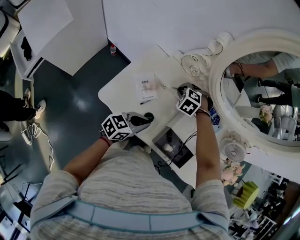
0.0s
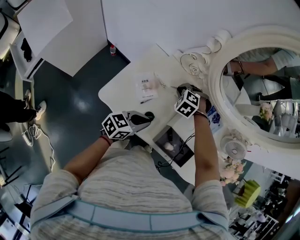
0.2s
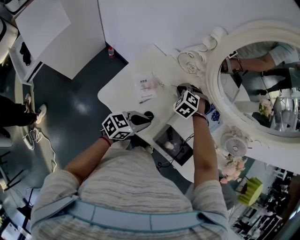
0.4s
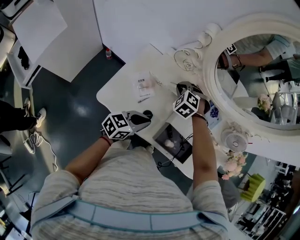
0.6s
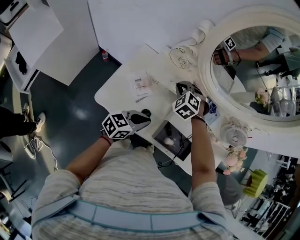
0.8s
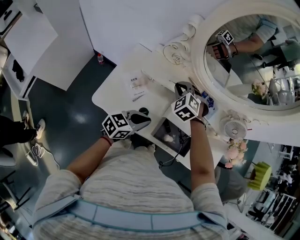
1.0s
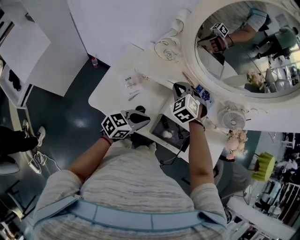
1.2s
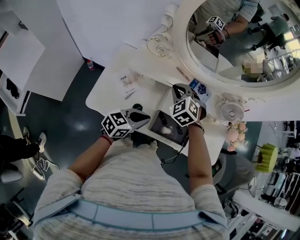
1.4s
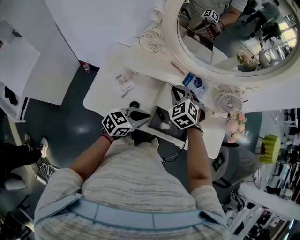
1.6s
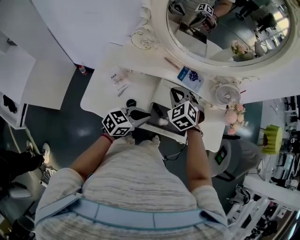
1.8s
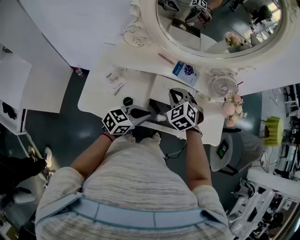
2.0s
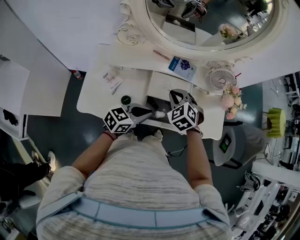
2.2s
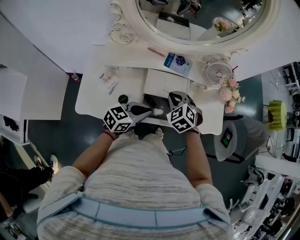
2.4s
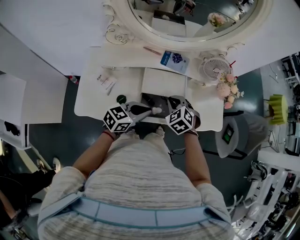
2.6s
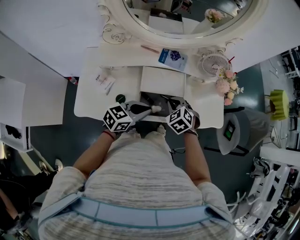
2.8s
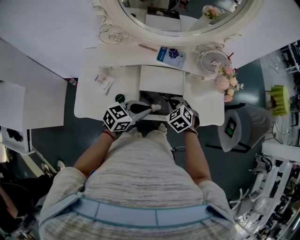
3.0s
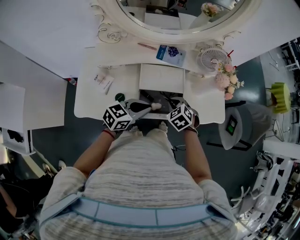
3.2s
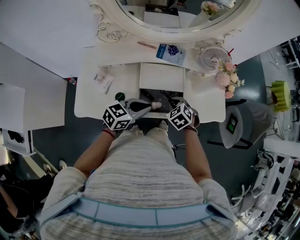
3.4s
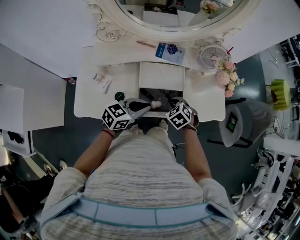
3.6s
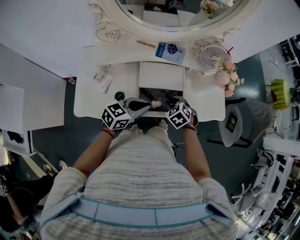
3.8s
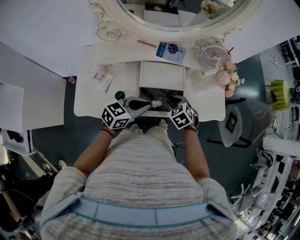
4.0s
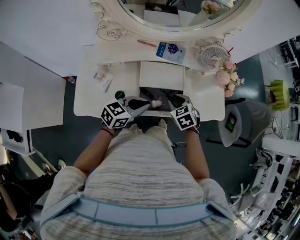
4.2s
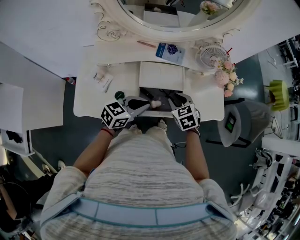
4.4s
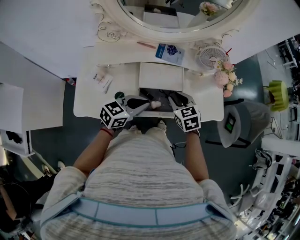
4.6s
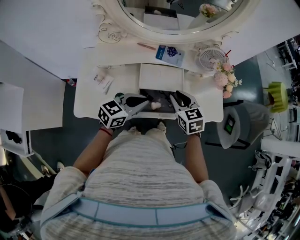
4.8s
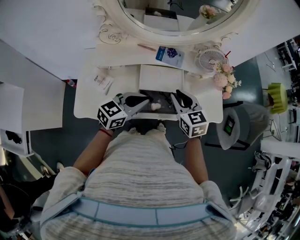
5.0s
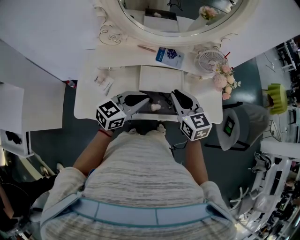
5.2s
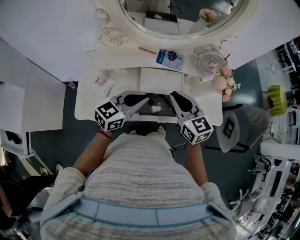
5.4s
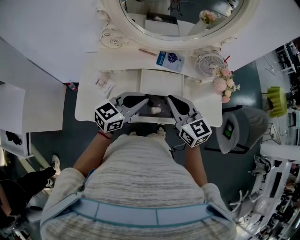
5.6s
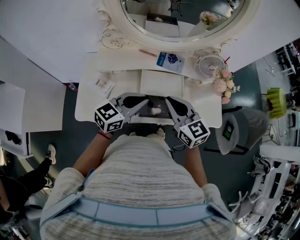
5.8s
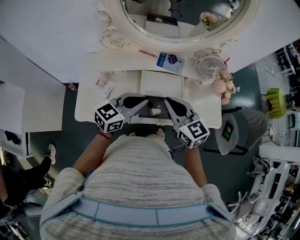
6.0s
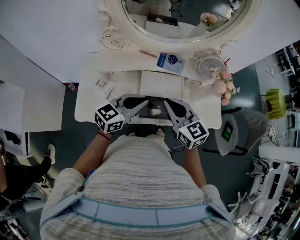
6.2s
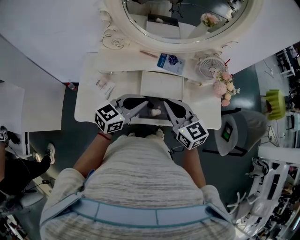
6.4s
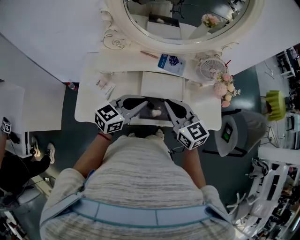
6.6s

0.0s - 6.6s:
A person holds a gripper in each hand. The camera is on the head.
0.0s - 1.6s: The right gripper travels to the right, upward and backward by some 20 cm, and changes its angle by about 40 degrees, while the left gripper heads to the right, covering approximately 10 cm.
1.6s - 3.2s: The left gripper heads to the right, covering some 10 cm; the right gripper moves to the right and downward, some 20 cm, and swivels approximately 30 degrees.
3.2s - 5.0s: The left gripper is displaced upward by about 5 cm, while the right gripper travels upward by about 15 cm, and rotates approximately 40 degrees.
5.0s - 6.6s: The right gripper moves upward, about 5 cm.

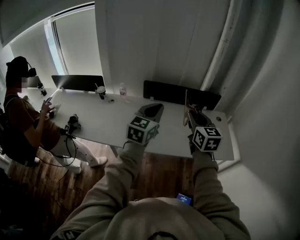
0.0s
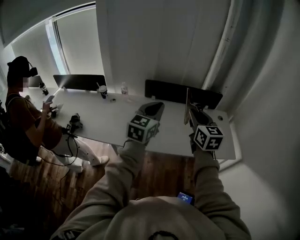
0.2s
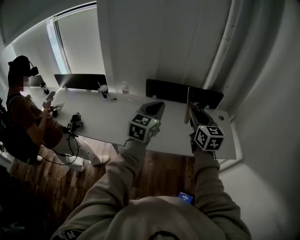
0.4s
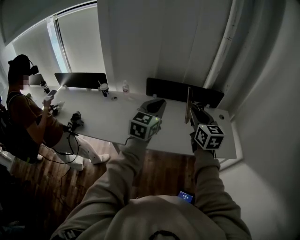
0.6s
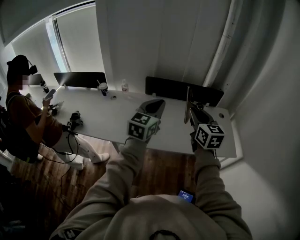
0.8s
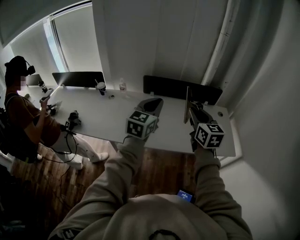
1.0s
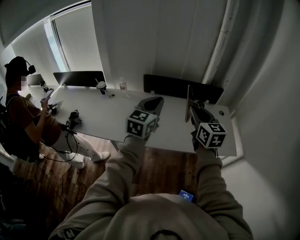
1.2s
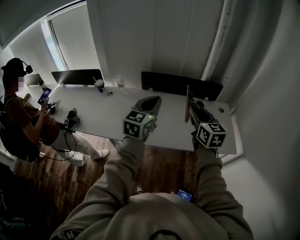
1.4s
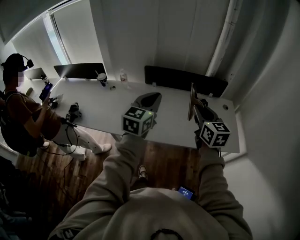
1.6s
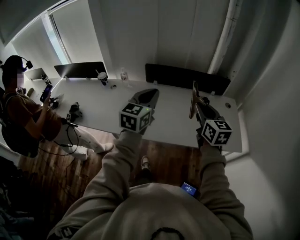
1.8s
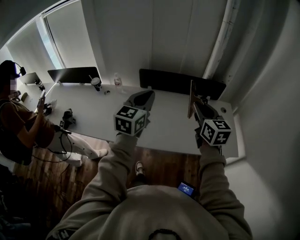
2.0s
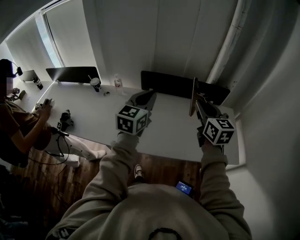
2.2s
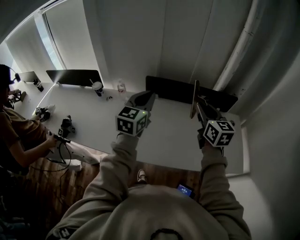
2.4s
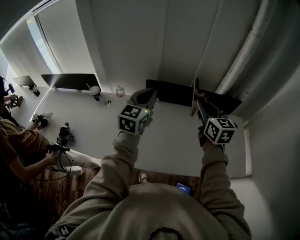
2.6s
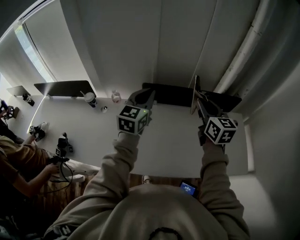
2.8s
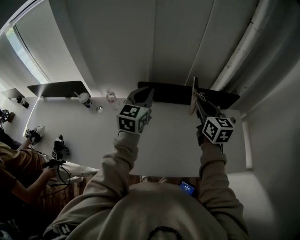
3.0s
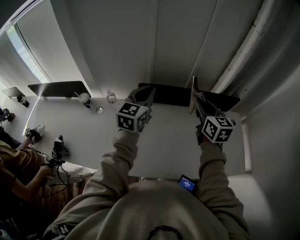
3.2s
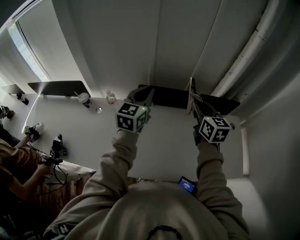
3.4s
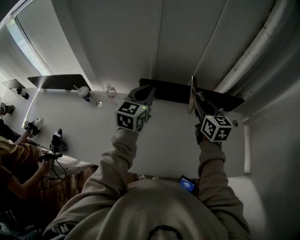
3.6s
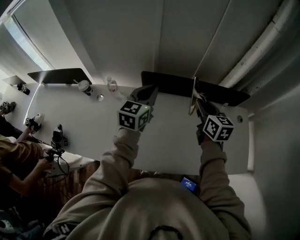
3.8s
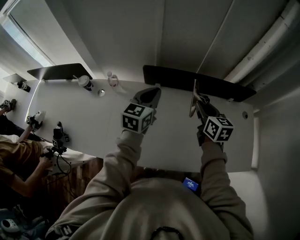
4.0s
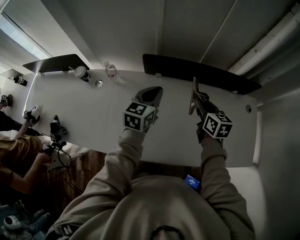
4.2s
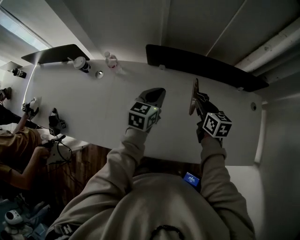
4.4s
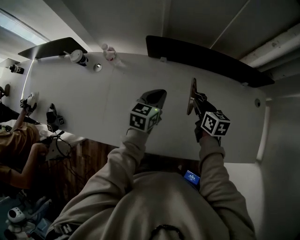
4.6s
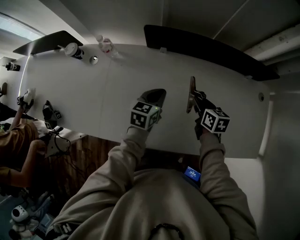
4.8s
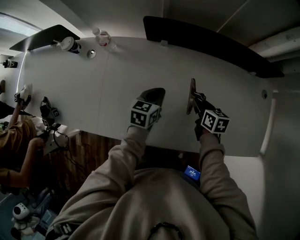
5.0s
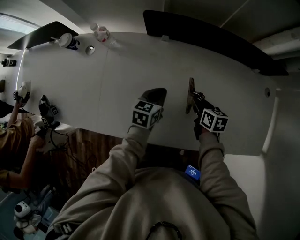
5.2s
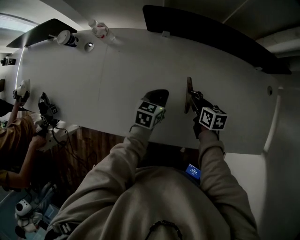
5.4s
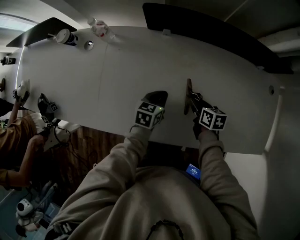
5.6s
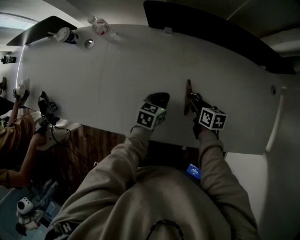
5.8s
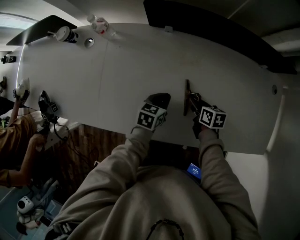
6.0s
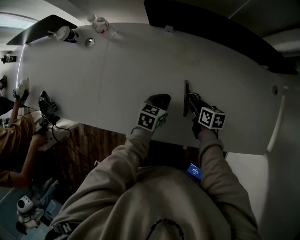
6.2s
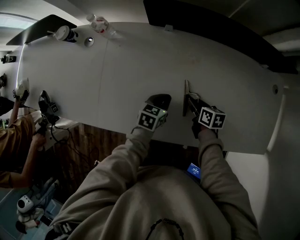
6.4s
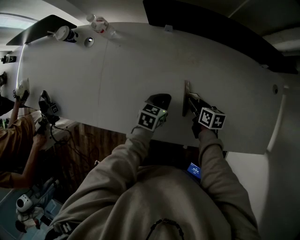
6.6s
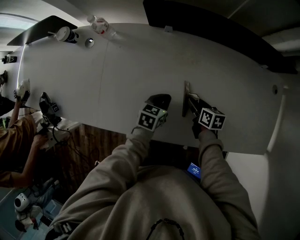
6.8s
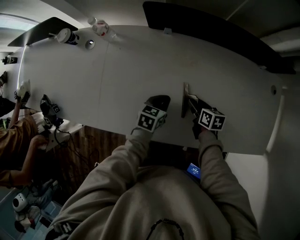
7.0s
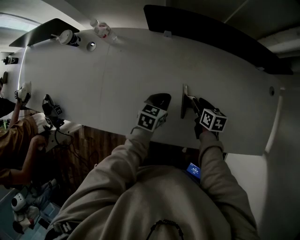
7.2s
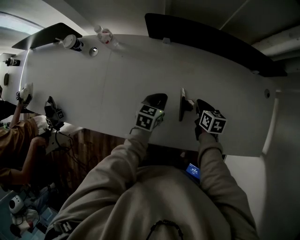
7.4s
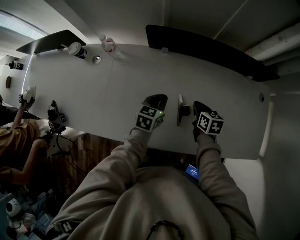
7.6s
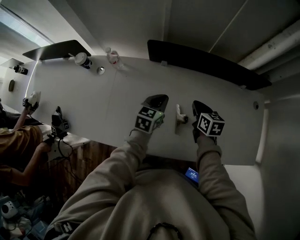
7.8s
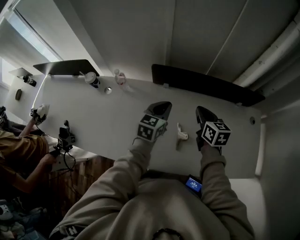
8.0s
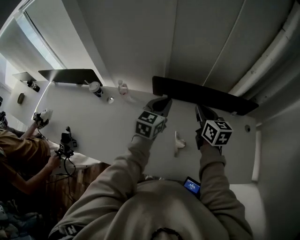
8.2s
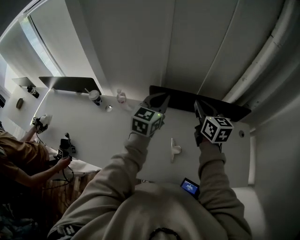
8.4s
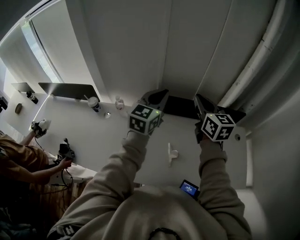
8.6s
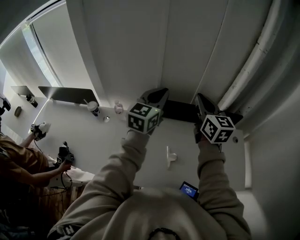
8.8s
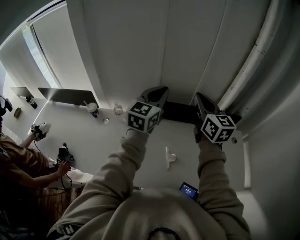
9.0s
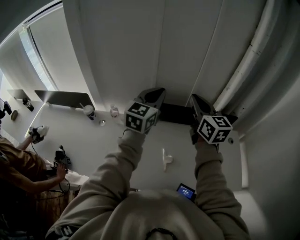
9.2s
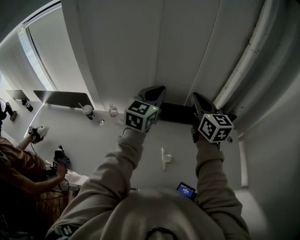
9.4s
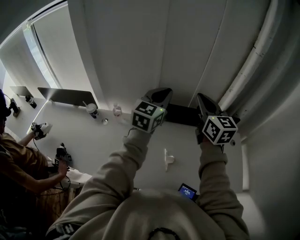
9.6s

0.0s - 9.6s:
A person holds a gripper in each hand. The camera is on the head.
0.0s - 1.6s: The right gripper shifts approximately 5 cm to the right.
1.6s - 3.2s: The grippers both shift forward by roughly 35 cm.
3.2s - 4.8s: Both grippers travel together downward, some 35 cm. The left gripper changes its angle by some 30 degrees. Meanwhile the right gripper turns by approximately 40 degrees.
4.8s - 6.4s: The right gripper is displaced downward by roughly 15 cm. Meanwhile the left gripper goes approximately 15 cm downward and backward.
6.4s - 8.0s: Both grippers move upward, about 30 cm. The left gripper rotates roughly 30 degrees; the right gripper rotates roughly 30 degrees.
8.0s - 9.6s: Both grippers travel together upward, some 30 cm. The right gripper turns by about 30 degrees. Meanwhile the left gripper changes its angle by approximately 30 degrees.

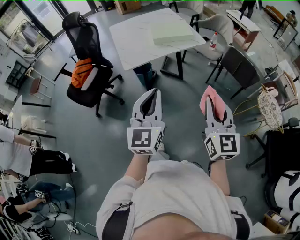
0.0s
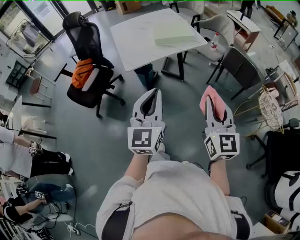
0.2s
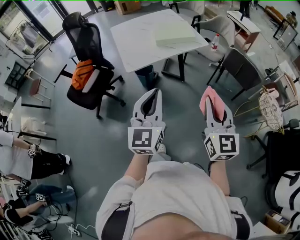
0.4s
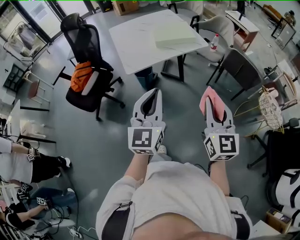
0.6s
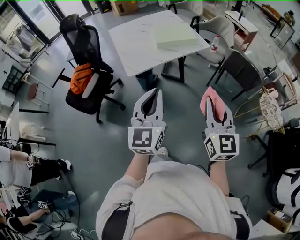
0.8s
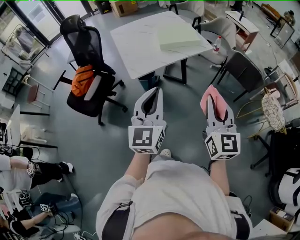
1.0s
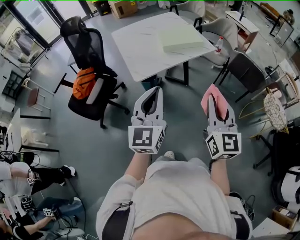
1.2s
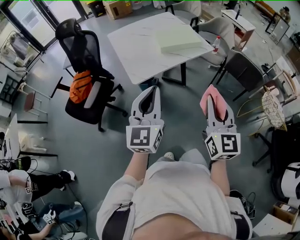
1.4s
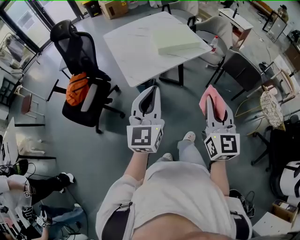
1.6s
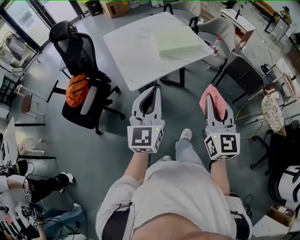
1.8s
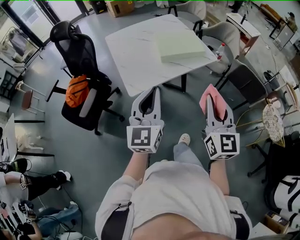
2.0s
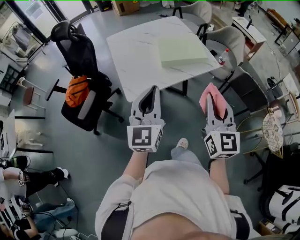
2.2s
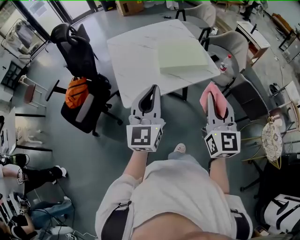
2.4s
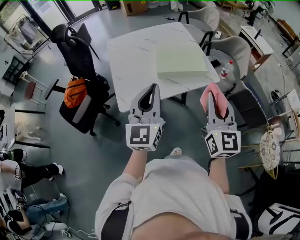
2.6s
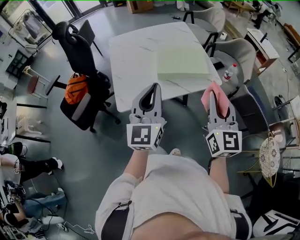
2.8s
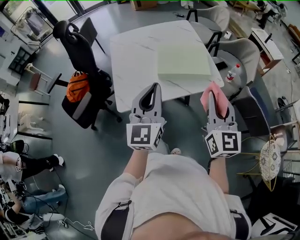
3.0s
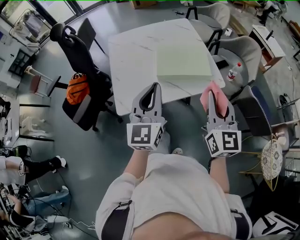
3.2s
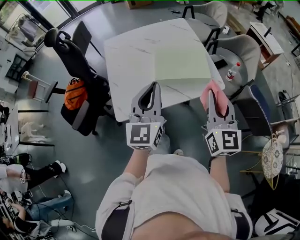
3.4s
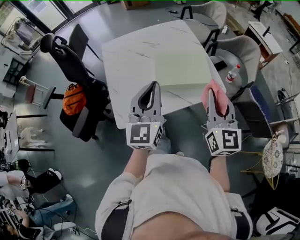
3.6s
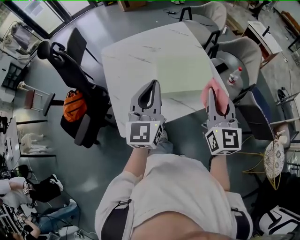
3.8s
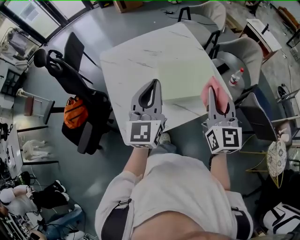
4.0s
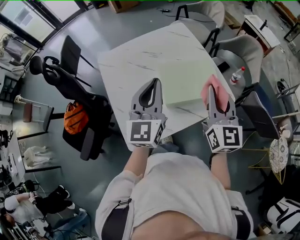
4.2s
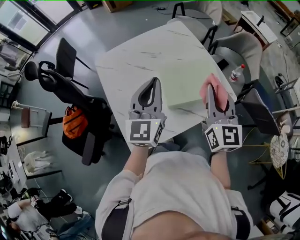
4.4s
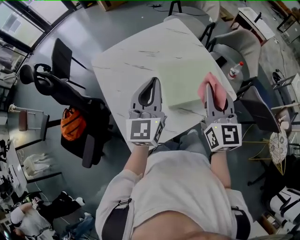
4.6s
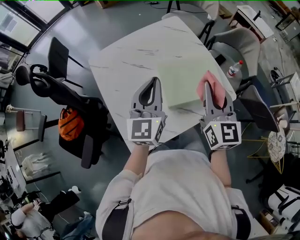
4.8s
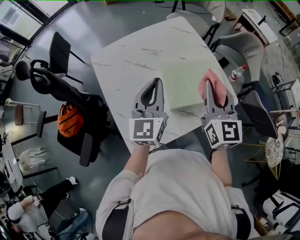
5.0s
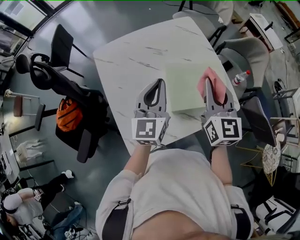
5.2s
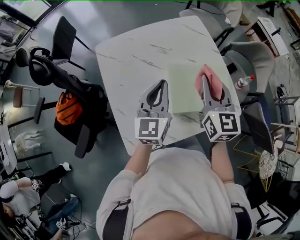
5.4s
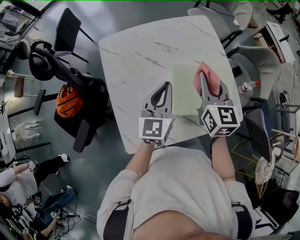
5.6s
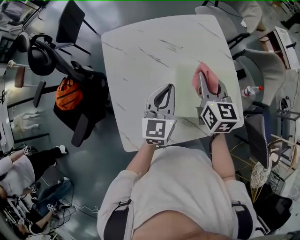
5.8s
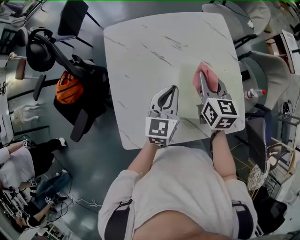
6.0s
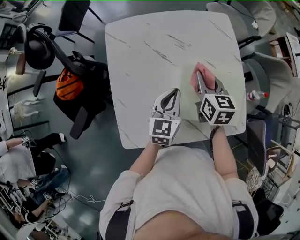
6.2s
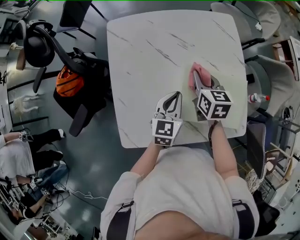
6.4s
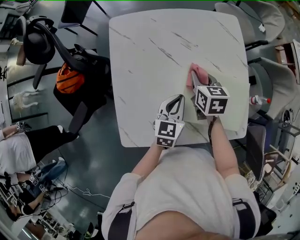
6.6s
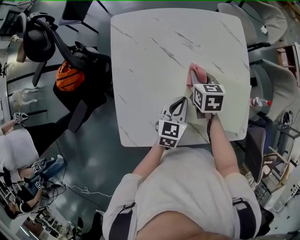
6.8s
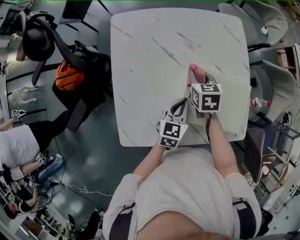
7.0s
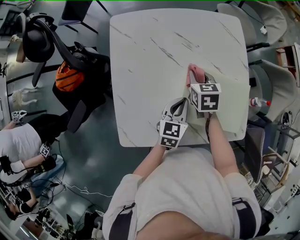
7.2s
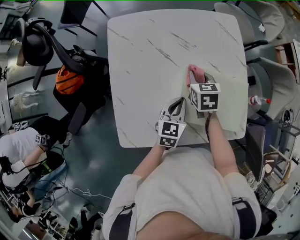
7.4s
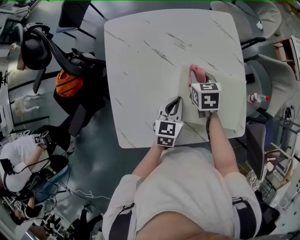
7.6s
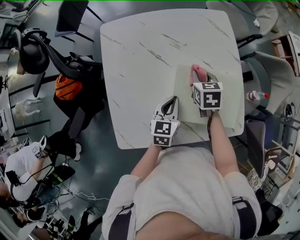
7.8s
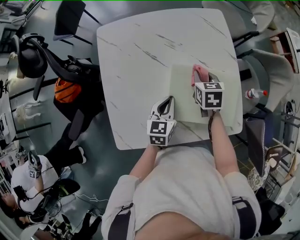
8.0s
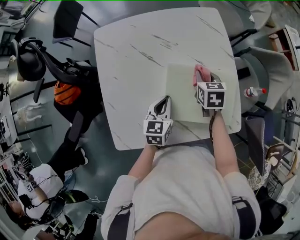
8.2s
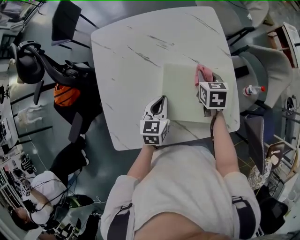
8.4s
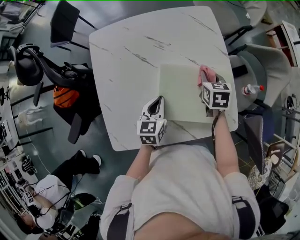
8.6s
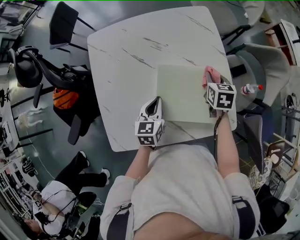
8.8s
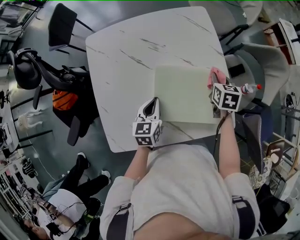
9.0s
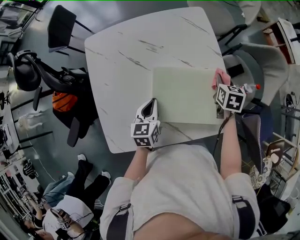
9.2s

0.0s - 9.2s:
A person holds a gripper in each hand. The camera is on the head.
0.0s - 1.6s: The right gripper heads to the left and forward, covering approximately 15 cm. The left gripper goes about 20 cm forward and to the left.
1.6s - 3.0s: The two grippers go some 30 cm forward.
3.0s - 4.6s: The right gripper travels forward and to the left by some 25 cm. Meanwhile the left gripper is displaced forward by about 25 cm.
4.6s - 6.2s: The right gripper is displaced forward, downward and to the left by approximately 30 cm, and changes its angle by roughly 40 degrees. Meanwhile the left gripper shifts approximately 20 cm downward, and changes its angle by some 30 degrees.
6.2s - 7.6s: The two grippers go some 10 cm downward. The right gripper swivels about 20 degrees.
7.6s - 9.2s: The right gripper heads to the right, covering approximately 25 cm.
